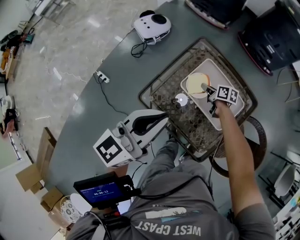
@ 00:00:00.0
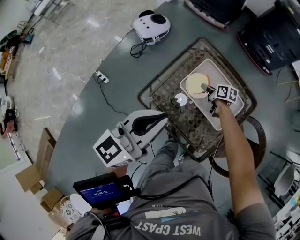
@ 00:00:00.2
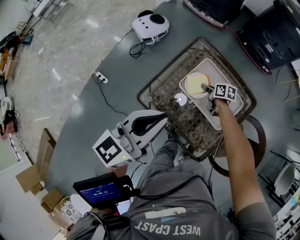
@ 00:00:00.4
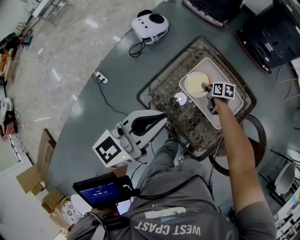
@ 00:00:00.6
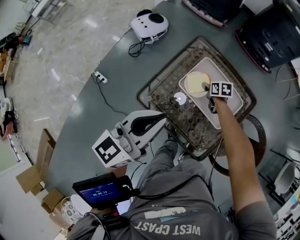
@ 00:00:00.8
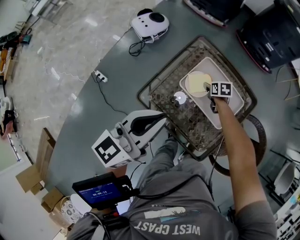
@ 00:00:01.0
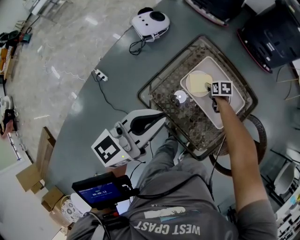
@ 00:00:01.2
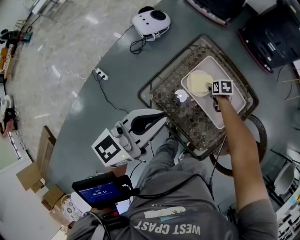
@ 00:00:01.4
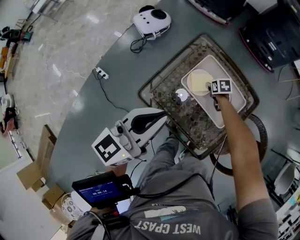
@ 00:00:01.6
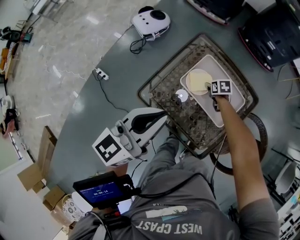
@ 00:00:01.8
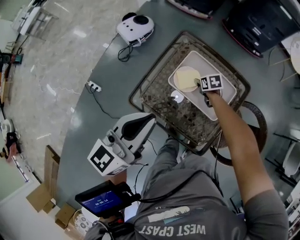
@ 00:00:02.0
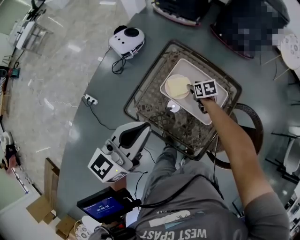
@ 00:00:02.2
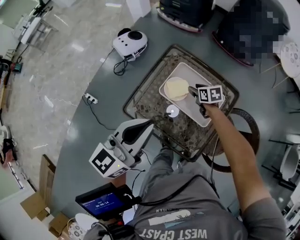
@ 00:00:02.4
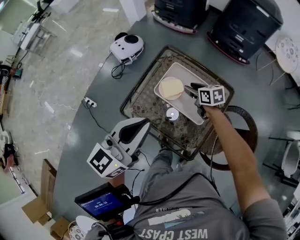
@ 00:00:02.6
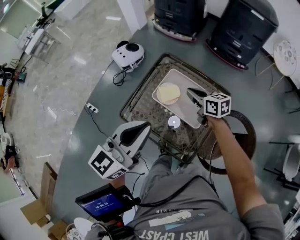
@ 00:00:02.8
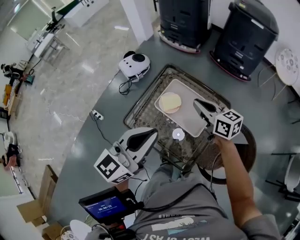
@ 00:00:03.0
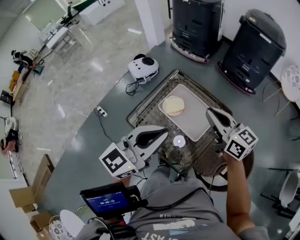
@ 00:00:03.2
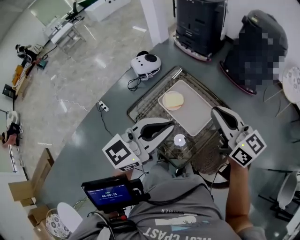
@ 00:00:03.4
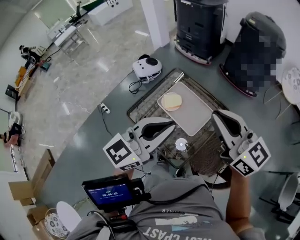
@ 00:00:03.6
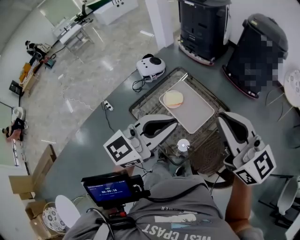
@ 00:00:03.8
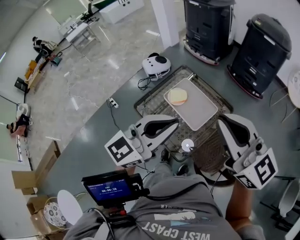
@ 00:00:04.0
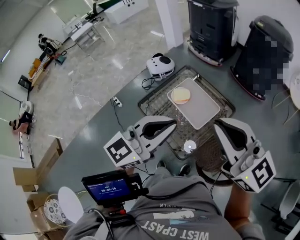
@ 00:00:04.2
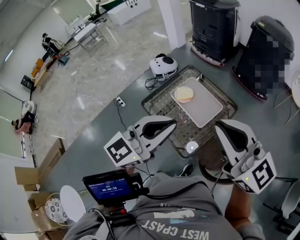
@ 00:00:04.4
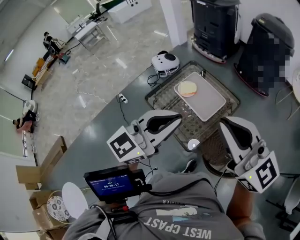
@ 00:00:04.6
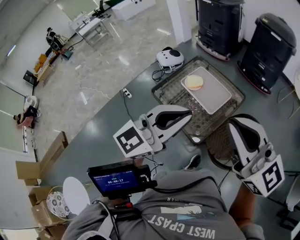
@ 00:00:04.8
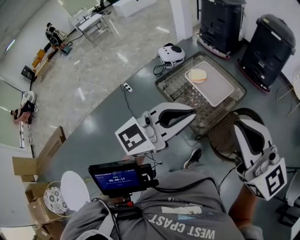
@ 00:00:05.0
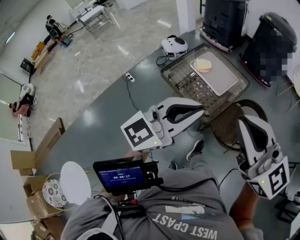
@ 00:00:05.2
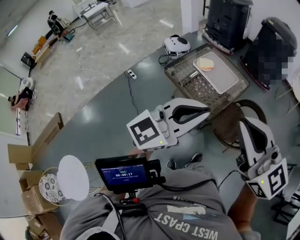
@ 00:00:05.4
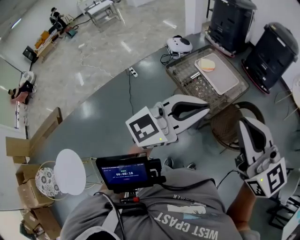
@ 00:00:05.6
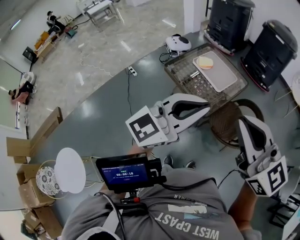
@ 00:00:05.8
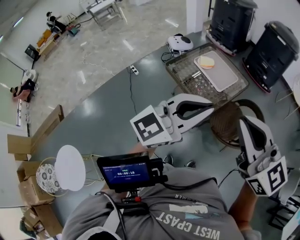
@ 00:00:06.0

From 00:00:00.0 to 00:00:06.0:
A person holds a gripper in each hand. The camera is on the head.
From 00:00:00.0 to 00:00:01.6: The right gripper heads downward, covering approximately 5 cm, turns by approximately 40 degrees, and opens its fingers.
From 00:00:01.6 to 00:00:03.0: The left gripper heads to the right, backward and upward, covering approximately 20 cm, while the right gripper travels upward by roughly 35 cm, angles its fingers upward, by about 50 degrees, and closes up.
From 00:00:03.0 to 00:00:04.4: The right gripper goes roughly 40 cm backward and upward, and changes its angle by roughly 40 degrees, while the left gripper goes approximately 20 cm backward, to the right and upward.
From 00:00:04.4 to 00:00:06.0: Both grippers travel together backward, about 30 cm.

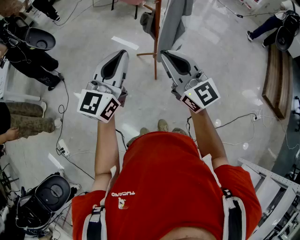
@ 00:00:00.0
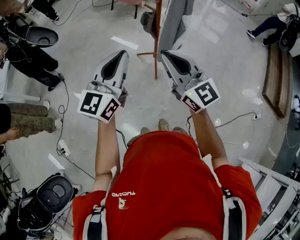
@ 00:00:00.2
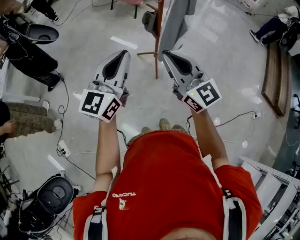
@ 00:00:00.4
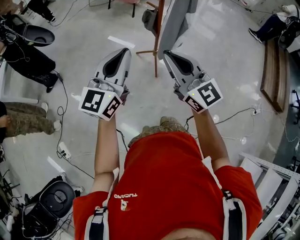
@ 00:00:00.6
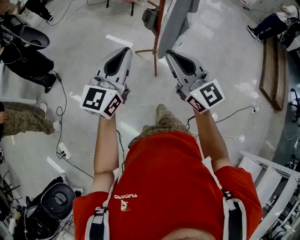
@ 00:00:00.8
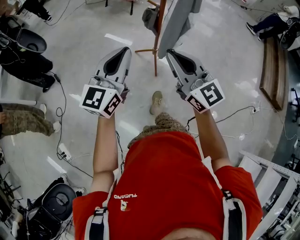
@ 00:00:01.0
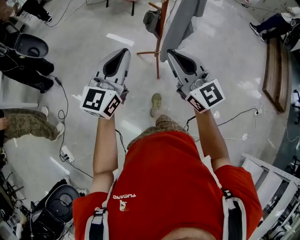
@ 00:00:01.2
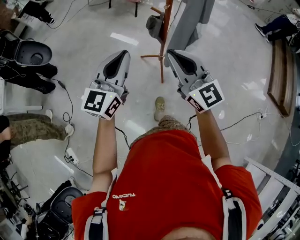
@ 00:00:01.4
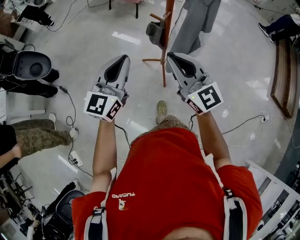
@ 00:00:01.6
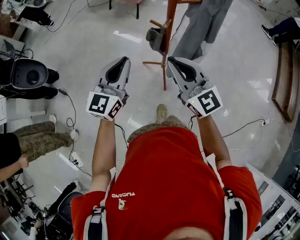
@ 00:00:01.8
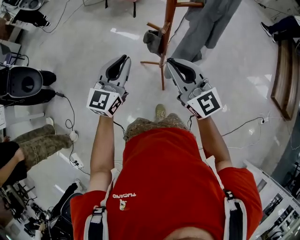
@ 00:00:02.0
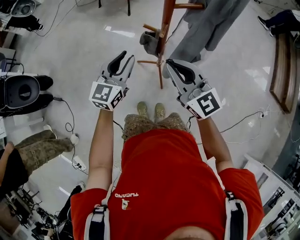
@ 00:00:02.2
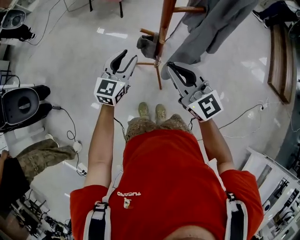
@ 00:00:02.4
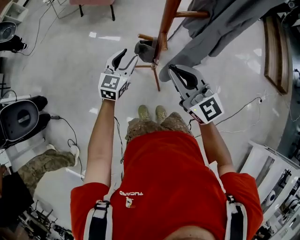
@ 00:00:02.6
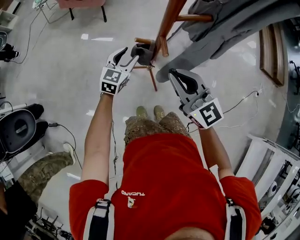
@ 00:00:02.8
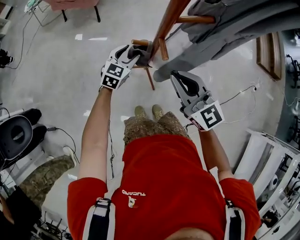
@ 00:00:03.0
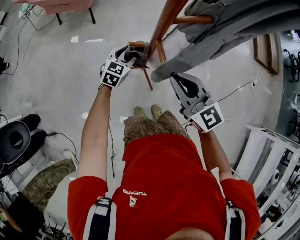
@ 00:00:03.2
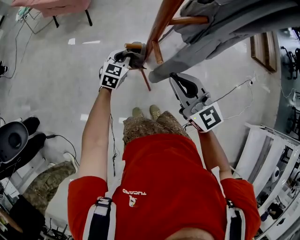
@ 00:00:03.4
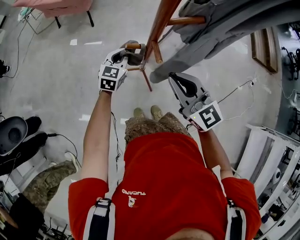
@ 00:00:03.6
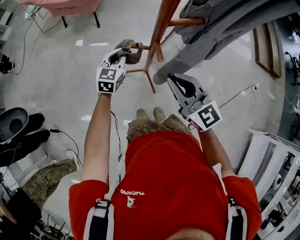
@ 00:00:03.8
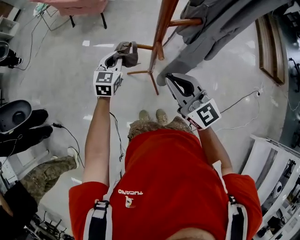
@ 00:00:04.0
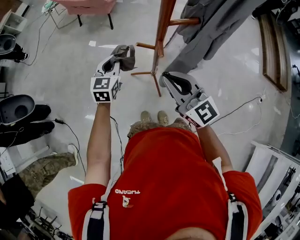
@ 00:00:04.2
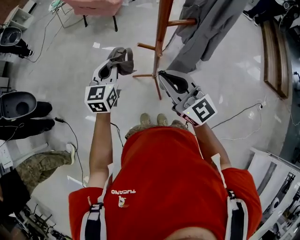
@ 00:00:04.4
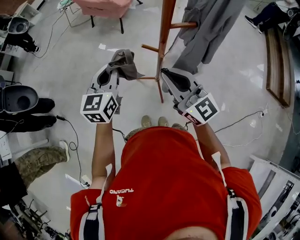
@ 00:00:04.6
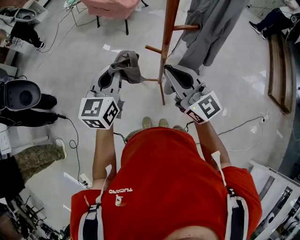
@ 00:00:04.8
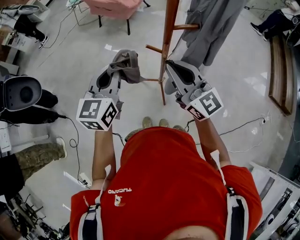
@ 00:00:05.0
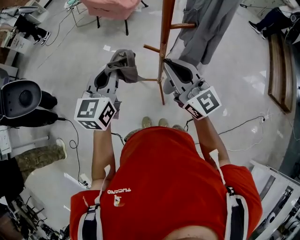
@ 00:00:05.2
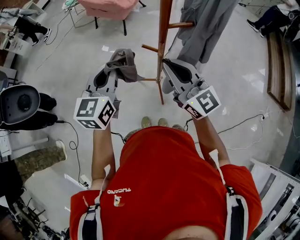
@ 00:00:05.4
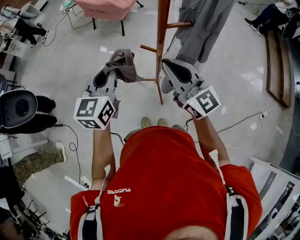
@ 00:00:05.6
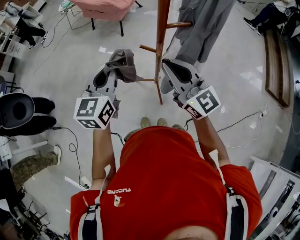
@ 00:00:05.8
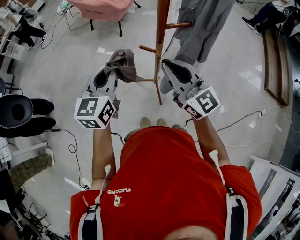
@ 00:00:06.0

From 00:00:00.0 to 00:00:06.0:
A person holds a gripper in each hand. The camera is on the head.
From 00:00:00.0 to 00:00:01.6: Both grippers move forward, roughly 20 cm.
From 00:00:01.6 to 00:00:03.0: The left gripper travels forward and downward by some 40 cm, rotates about 40 degrees, and opens its fingers, while the right gripper shifts roughly 20 cm forward and downward, and turns by about 20 degrees.
From 00:00:03.0 to 00:00:04.4: The left gripper is displaced upward, to the left and backward by some 20 cm, turns by about 30 degrees, and closes up. Meanwhile the right gripper shifts about 5 cm upward.
From 00:00:04.4 to 00:00:06.0: The left gripper shifts approximately 15 cm upward and backward.

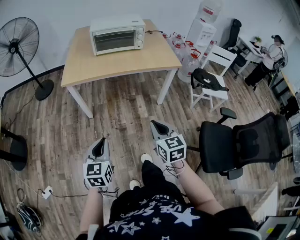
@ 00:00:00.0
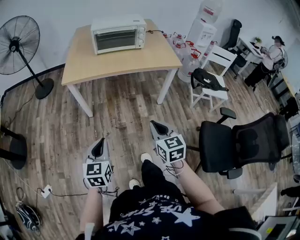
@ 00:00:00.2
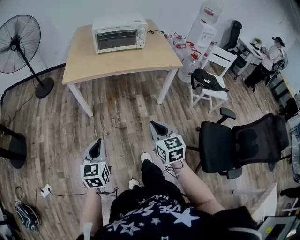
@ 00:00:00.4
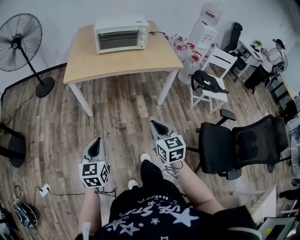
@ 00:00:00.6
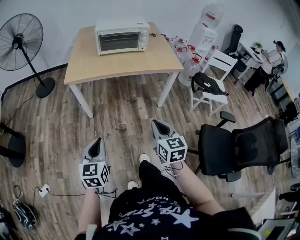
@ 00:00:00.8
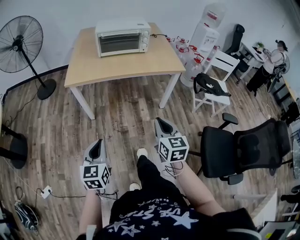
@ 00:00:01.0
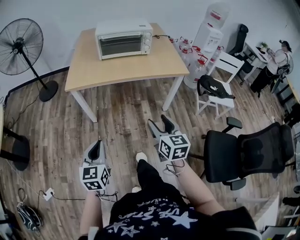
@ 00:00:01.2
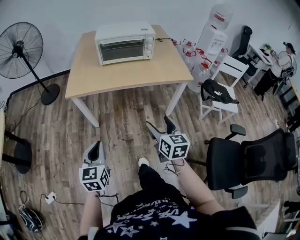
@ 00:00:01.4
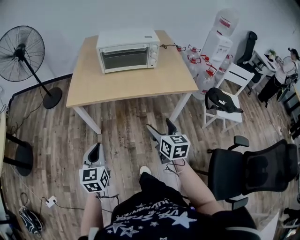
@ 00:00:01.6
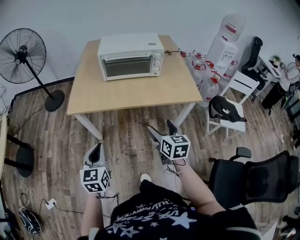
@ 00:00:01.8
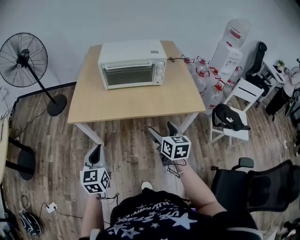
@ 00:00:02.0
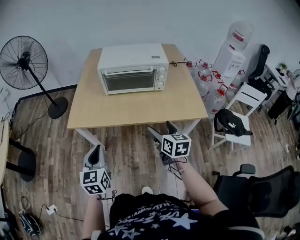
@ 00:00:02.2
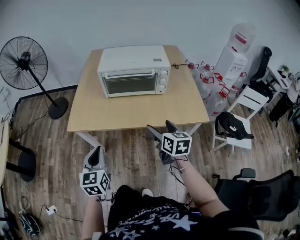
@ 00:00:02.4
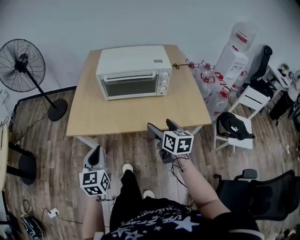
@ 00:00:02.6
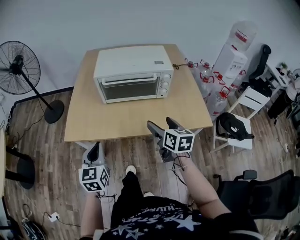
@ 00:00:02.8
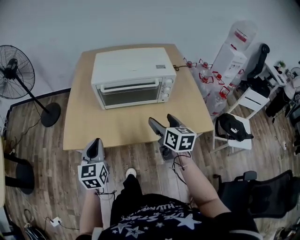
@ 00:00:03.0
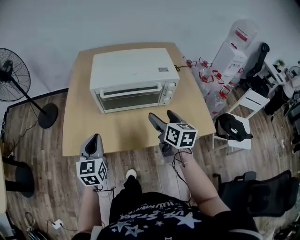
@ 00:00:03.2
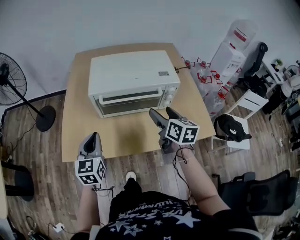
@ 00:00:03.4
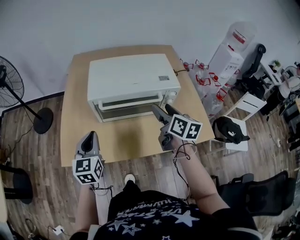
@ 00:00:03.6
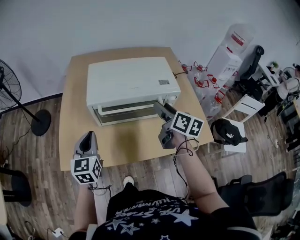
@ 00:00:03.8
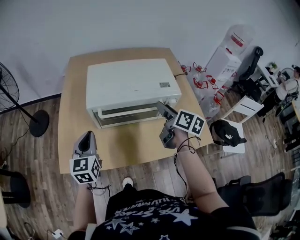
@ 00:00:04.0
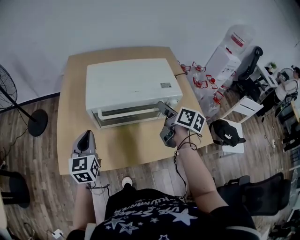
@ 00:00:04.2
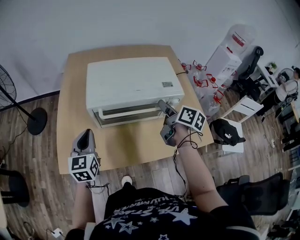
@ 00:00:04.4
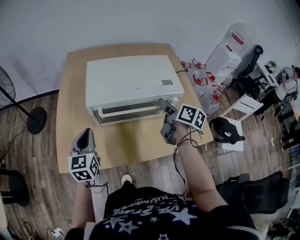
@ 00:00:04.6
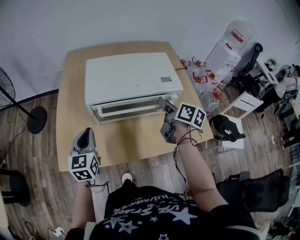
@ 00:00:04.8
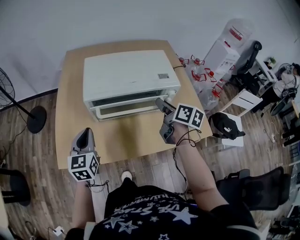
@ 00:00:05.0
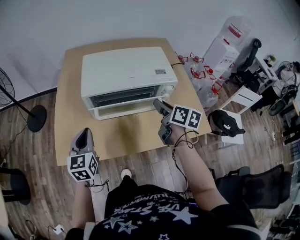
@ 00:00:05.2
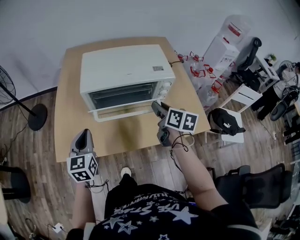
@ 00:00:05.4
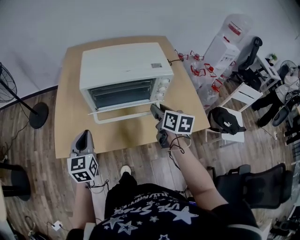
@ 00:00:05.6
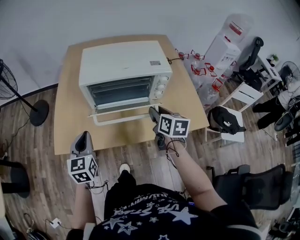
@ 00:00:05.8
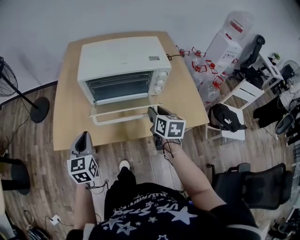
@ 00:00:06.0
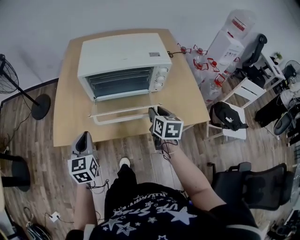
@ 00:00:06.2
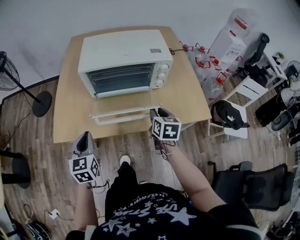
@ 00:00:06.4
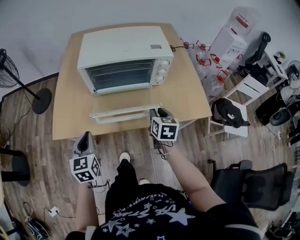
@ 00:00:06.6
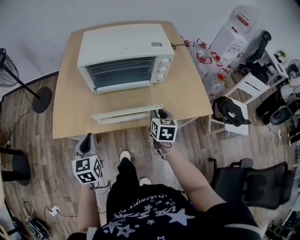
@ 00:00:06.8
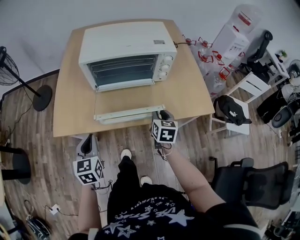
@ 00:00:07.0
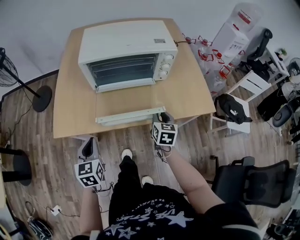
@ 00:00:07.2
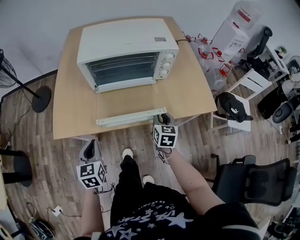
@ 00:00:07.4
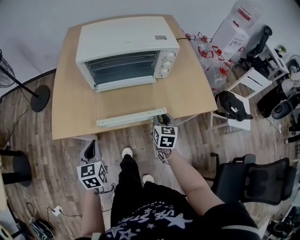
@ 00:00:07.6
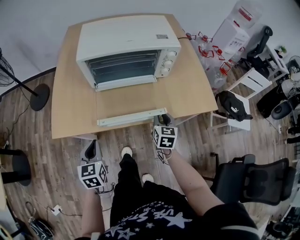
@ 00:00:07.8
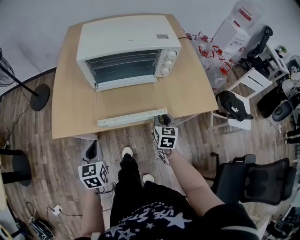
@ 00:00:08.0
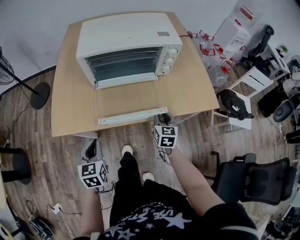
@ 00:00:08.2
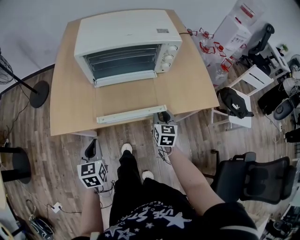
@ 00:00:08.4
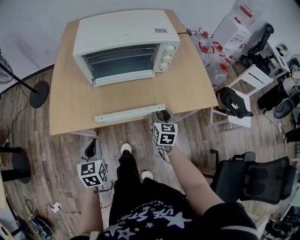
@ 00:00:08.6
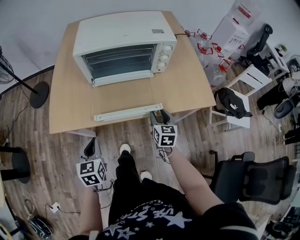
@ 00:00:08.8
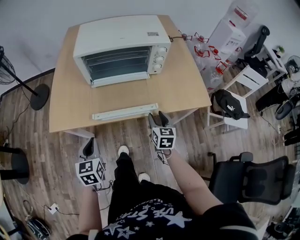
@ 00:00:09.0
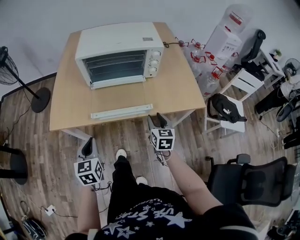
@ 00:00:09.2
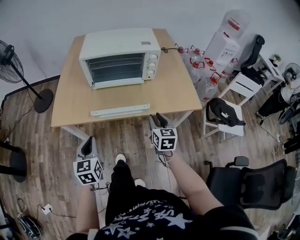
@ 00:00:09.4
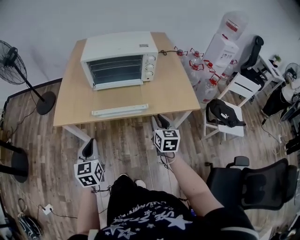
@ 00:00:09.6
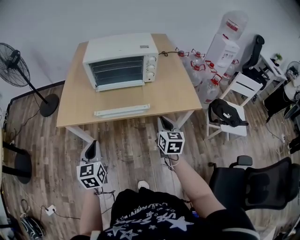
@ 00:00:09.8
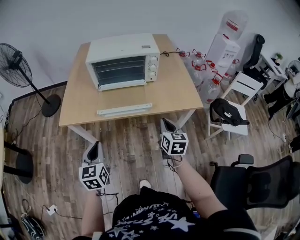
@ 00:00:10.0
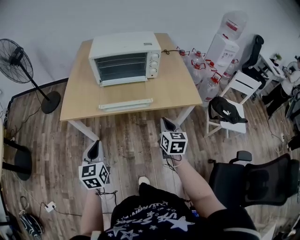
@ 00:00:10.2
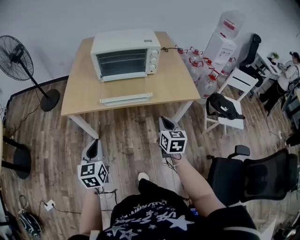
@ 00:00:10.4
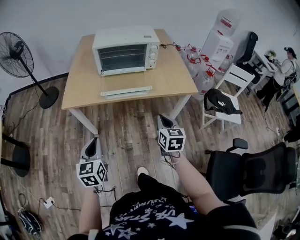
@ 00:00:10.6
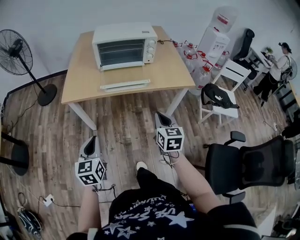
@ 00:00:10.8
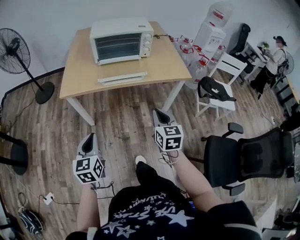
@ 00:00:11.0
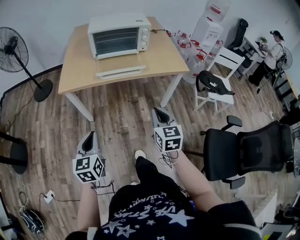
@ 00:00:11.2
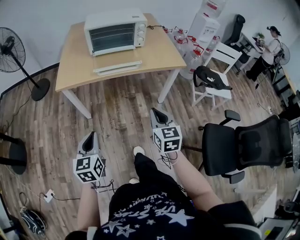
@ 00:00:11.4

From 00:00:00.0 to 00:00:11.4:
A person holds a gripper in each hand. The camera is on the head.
From 00:00:00.0 to 00:00:01.4: The grippers both shift forward by approximately 10 cm. The right gripper opens up.
From 00:00:01.4 to 00:00:02.8: The two grippers go some 35 cm forward.
From 00:00:02.8 to 00:00:04.2: Both grippers travel together forward, some 25 cm. The right gripper turns by about 30 degrees, and closes.
From 00:00:04.2 to 00:00:05.6: Both grippers travel together backward, roughly 10 cm. The right gripper changes its angle by approximately 20 degrees.
From 00:00:05.6 to 00:00:07.2: The right gripper goes approximately 15 cm downward and backward, and turns by approximately 20 degrees. The left gripper shifts some 15 cm backward and downward.
From 00:00:07.2 to 00:00:08.6: There are only small adjustments of the grippers.
From 00:00:08.6 to 00:00:10.0: The right gripper moves backward and upward, some 20 cm. Meanwhile the left gripper heads backward, upward and to the right, covering about 20 cm.
From 00:00:10.0 to 00:00:11.4: The two grippers go about 25 cm backward.
